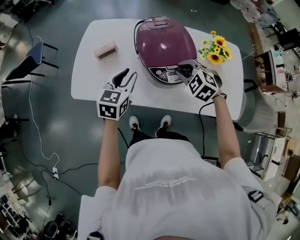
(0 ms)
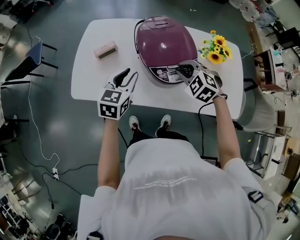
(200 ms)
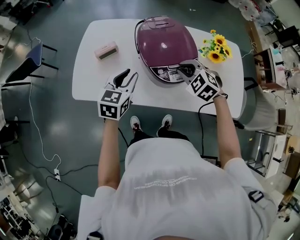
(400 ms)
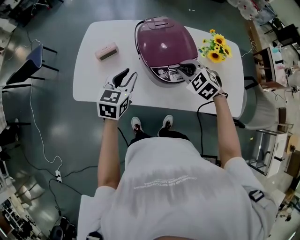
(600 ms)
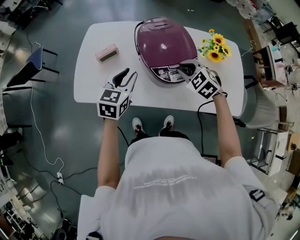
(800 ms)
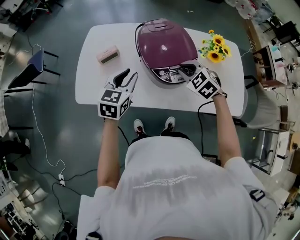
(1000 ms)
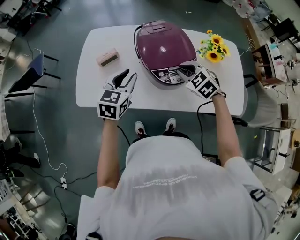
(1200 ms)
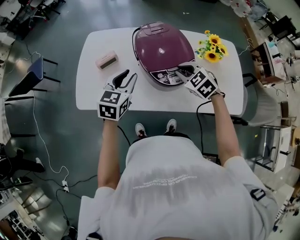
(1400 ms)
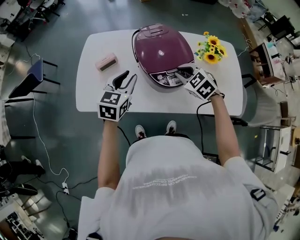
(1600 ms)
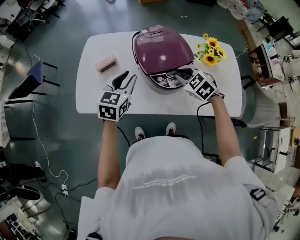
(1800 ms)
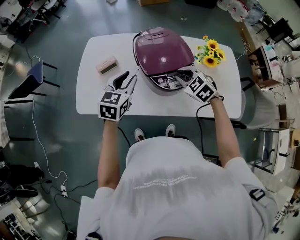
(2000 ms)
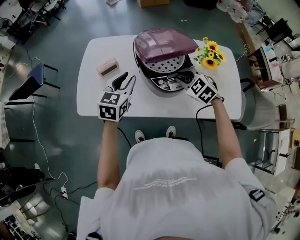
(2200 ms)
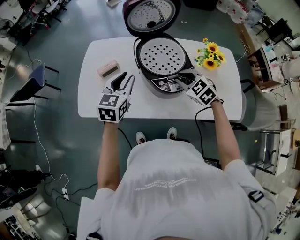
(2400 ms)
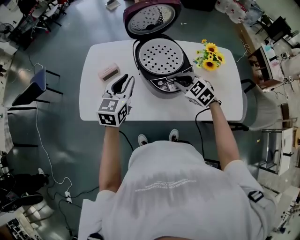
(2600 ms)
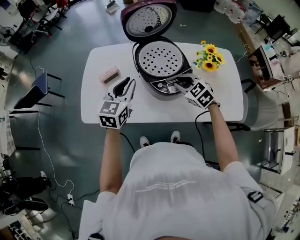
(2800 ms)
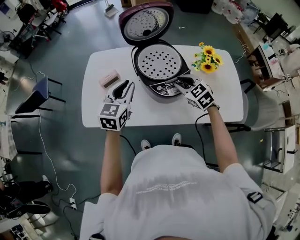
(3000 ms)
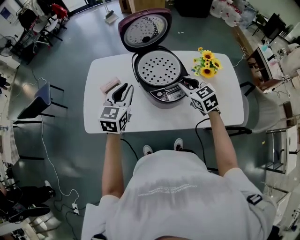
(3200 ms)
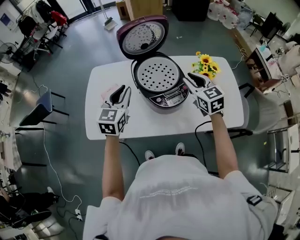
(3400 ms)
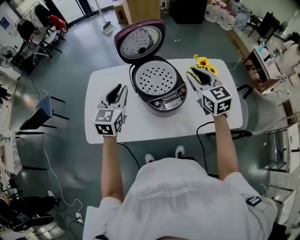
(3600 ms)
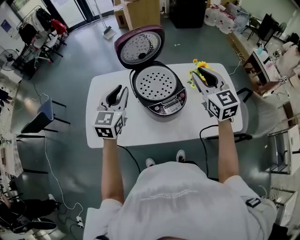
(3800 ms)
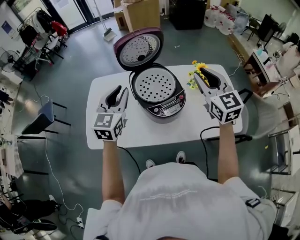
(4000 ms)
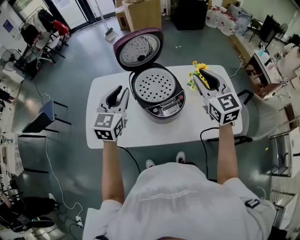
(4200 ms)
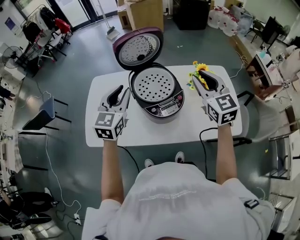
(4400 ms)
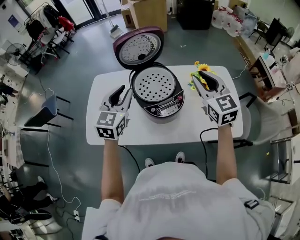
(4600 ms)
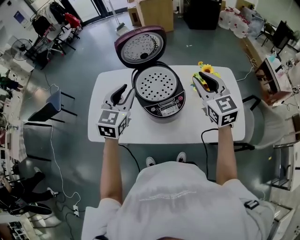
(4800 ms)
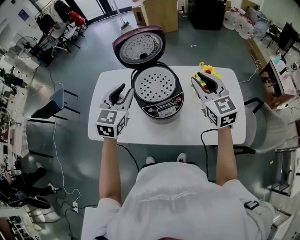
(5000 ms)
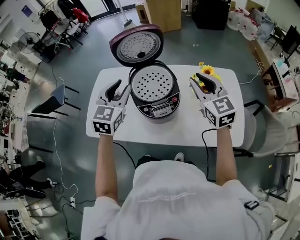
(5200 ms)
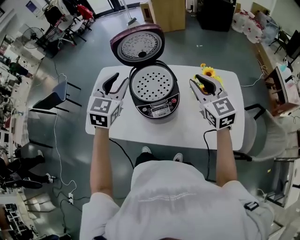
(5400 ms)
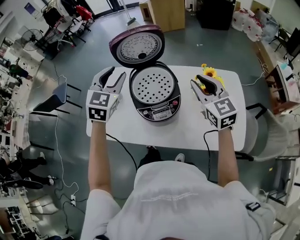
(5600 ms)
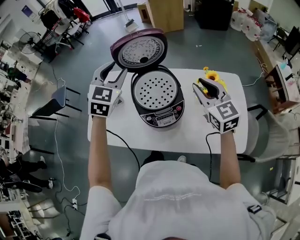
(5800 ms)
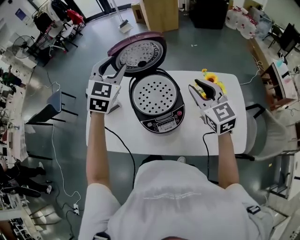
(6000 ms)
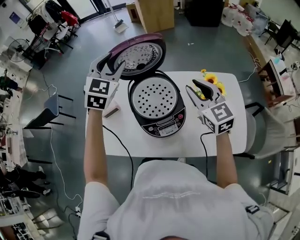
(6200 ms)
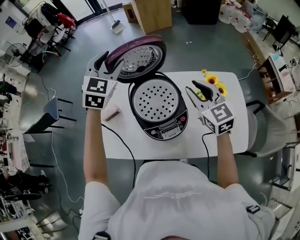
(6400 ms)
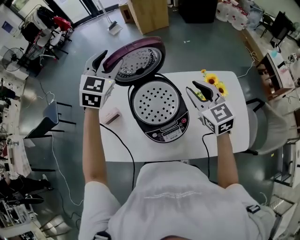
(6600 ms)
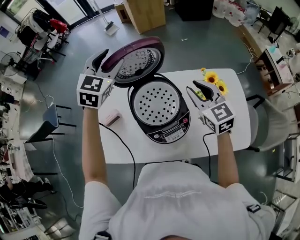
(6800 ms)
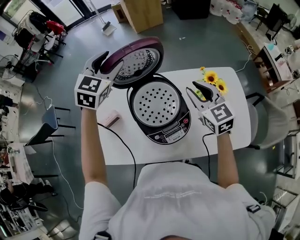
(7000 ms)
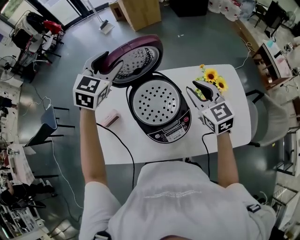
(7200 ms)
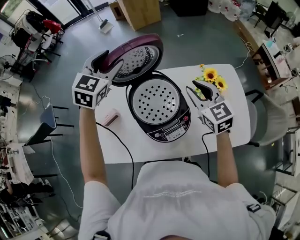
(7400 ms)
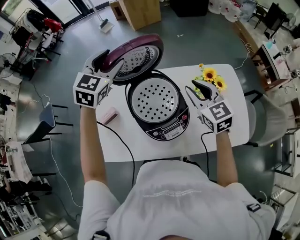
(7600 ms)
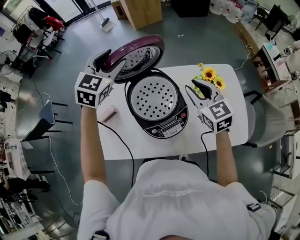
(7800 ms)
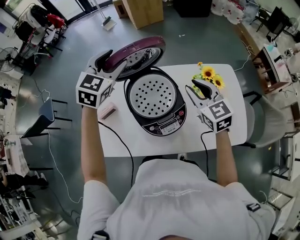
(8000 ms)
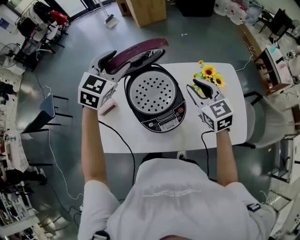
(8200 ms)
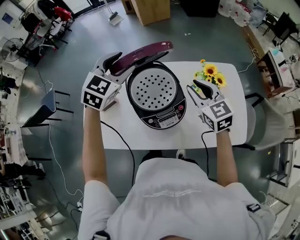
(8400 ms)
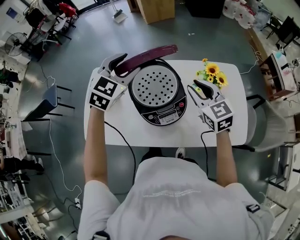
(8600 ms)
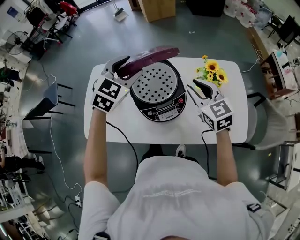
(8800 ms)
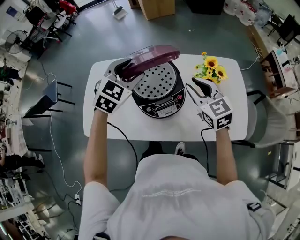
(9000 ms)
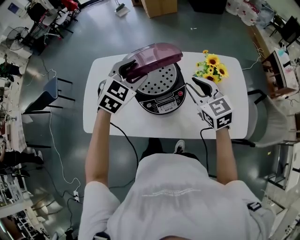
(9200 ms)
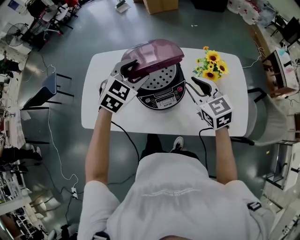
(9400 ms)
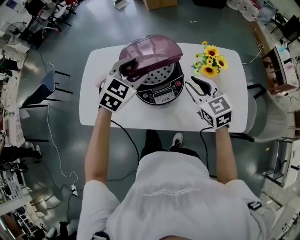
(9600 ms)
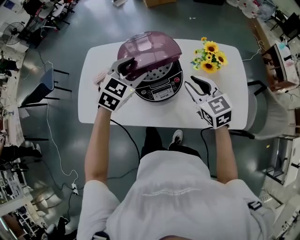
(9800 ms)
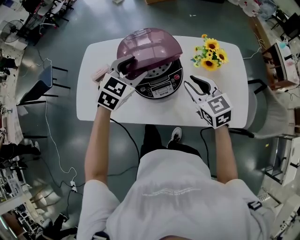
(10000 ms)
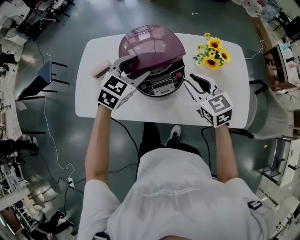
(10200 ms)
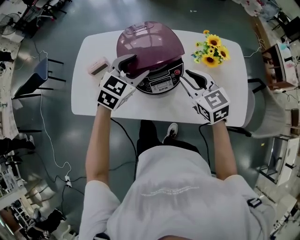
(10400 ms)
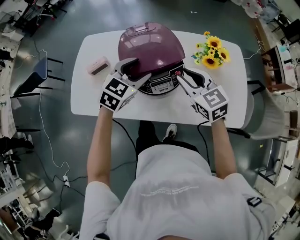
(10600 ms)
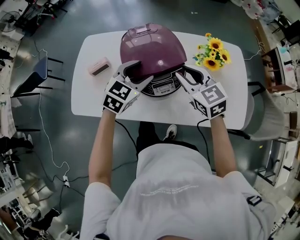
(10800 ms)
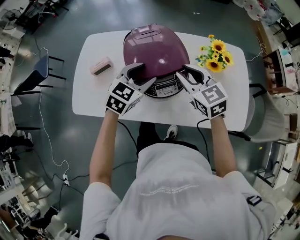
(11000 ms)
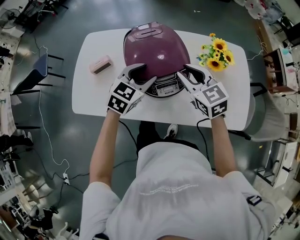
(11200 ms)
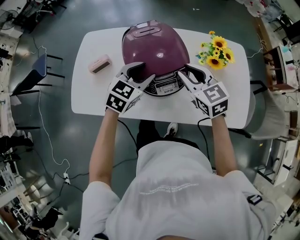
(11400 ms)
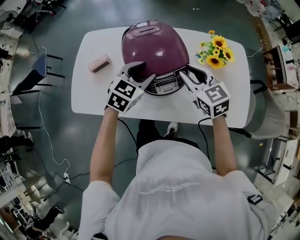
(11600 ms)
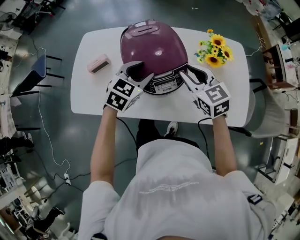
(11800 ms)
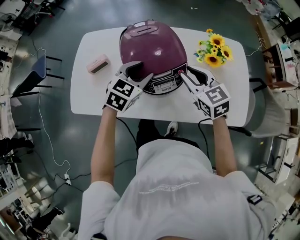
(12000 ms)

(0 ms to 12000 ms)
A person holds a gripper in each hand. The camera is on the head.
0 ms - 1600 ms: The grippers make only small movements.
1600 ms - 3000 ms: The grippers move only a little.
3000 ms - 4400 ms: The left gripper heads upward, covering approximately 10 cm; the right gripper travels upward and to the right by some 25 cm, and changes its angle by roughly 30 degrees.
4400 ms - 6000 ms: The right gripper travels forward by about 5 cm, while the left gripper shifts some 15 cm forward, swivels about 30 degrees, and opens.
6000 ms - 7600 ms: The left gripper is displaced forward by some 10 cm, while the right gripper ends up approximately 5 cm from where it was.
7600 ms - 9000 ms: The right gripper moves backward, roughly 5 cm. Meanwhile the left gripper heads backward, downward and to the right, covering roughly 15 cm.
9000 ms - 10400 ms: The left gripper goes about 10 cm downward and backward, while the right gripper heads downward, covering some 5 cm.
10400 ms - 12000 ms: The grippers move only a little.

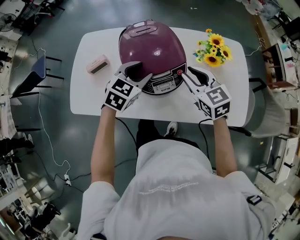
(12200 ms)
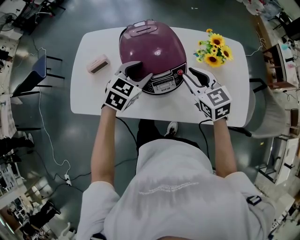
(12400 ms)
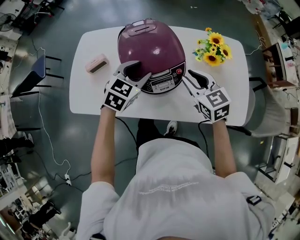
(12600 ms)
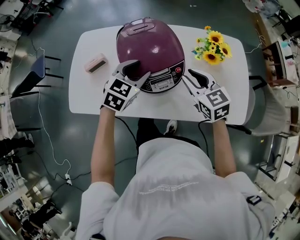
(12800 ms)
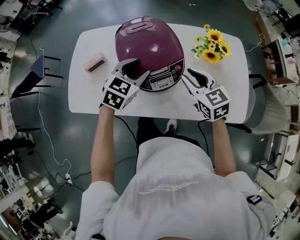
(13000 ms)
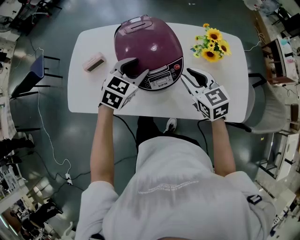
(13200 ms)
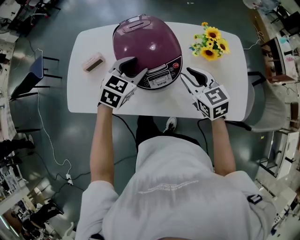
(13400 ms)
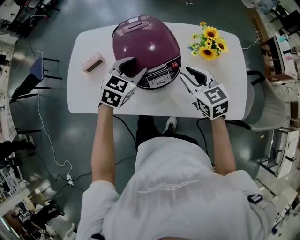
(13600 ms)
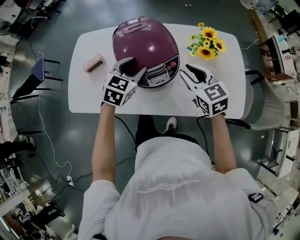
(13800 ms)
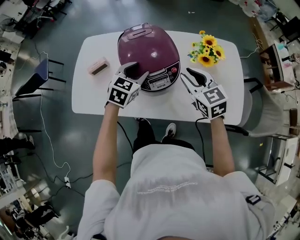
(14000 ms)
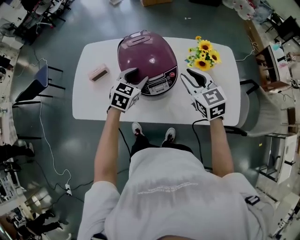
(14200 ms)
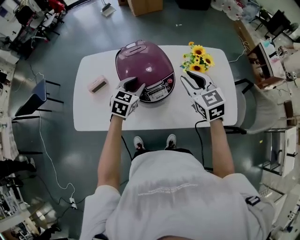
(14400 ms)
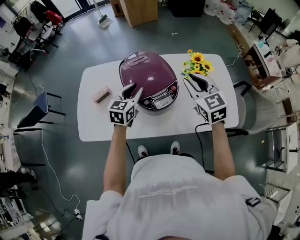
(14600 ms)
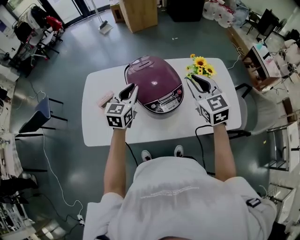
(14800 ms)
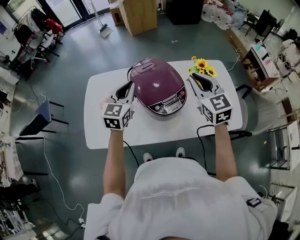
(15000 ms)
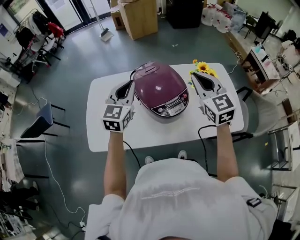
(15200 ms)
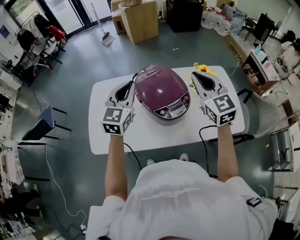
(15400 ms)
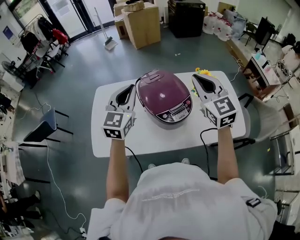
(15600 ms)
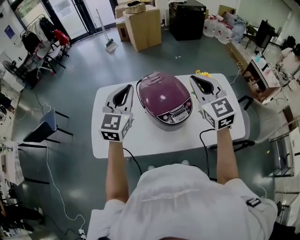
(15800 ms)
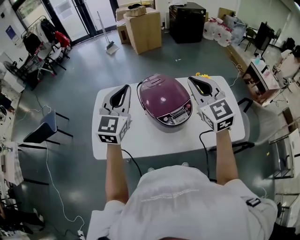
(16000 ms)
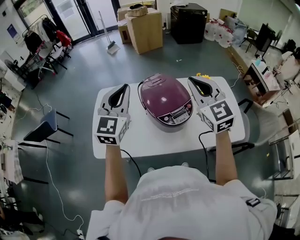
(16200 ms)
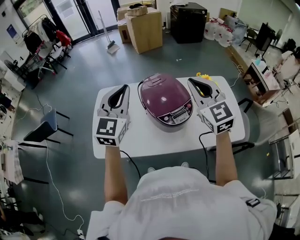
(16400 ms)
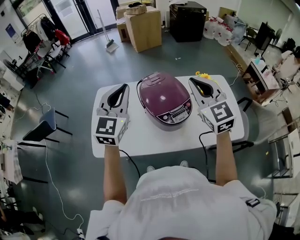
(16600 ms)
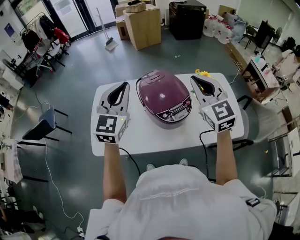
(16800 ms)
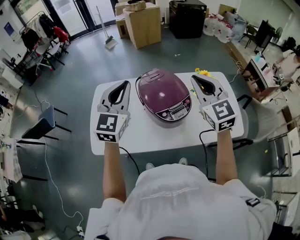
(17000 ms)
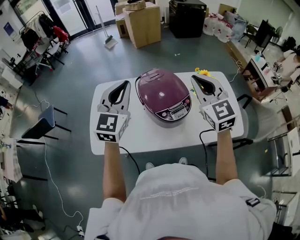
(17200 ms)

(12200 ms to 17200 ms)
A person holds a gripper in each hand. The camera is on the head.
12200 ms - 13800 ms: The grippers move only a little.
13800 ms - 15600 ms: The left gripper is displaced upward and to the left by roughly 25 cm, tips its fingers upward by roughly 30 degrees, and closes its fingers, while the right gripper shifts approximately 20 cm upward, turns by roughly 30 degrees, and closes up.
15600 ms - 17200 ms: The left gripper moves approximately 5 cm.

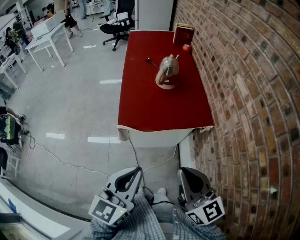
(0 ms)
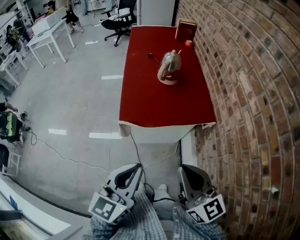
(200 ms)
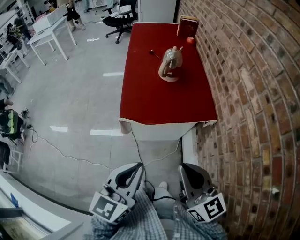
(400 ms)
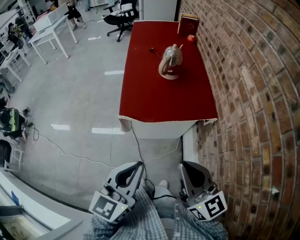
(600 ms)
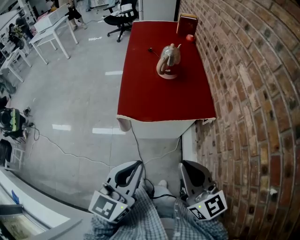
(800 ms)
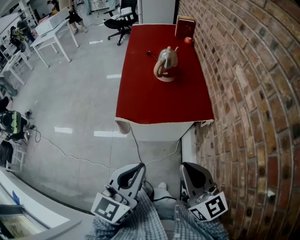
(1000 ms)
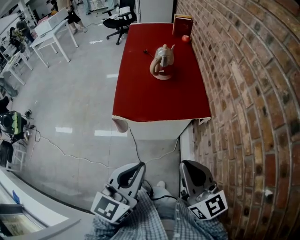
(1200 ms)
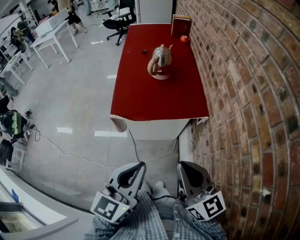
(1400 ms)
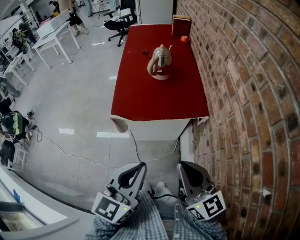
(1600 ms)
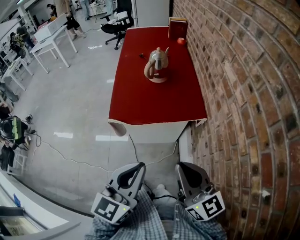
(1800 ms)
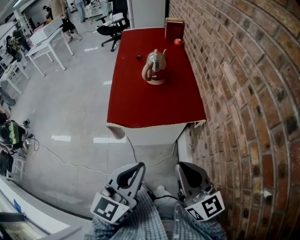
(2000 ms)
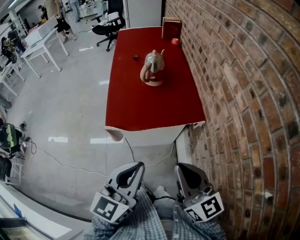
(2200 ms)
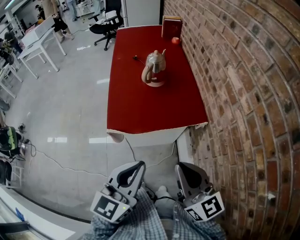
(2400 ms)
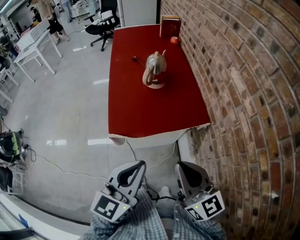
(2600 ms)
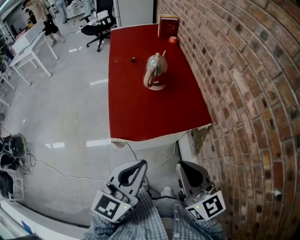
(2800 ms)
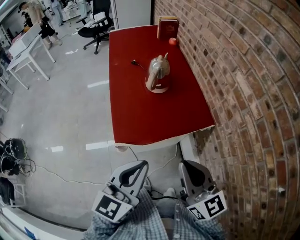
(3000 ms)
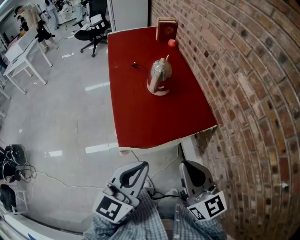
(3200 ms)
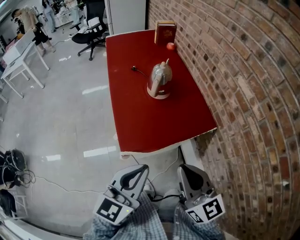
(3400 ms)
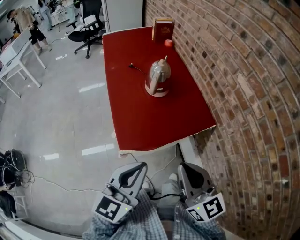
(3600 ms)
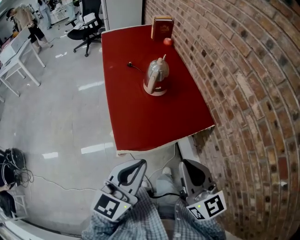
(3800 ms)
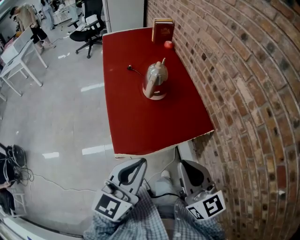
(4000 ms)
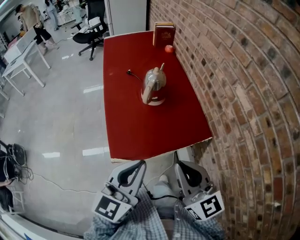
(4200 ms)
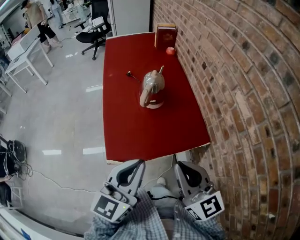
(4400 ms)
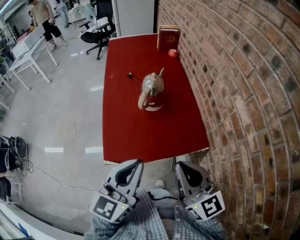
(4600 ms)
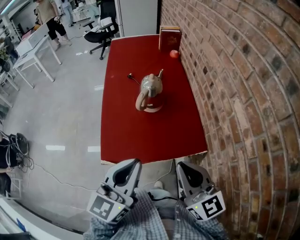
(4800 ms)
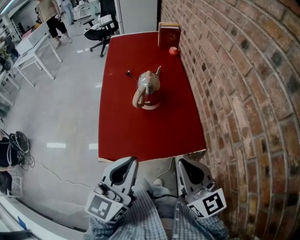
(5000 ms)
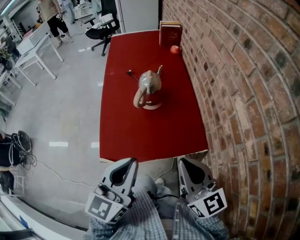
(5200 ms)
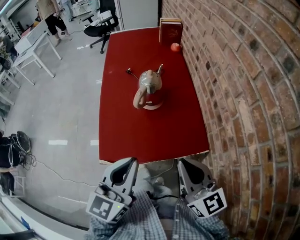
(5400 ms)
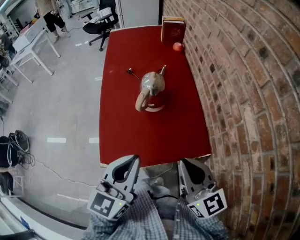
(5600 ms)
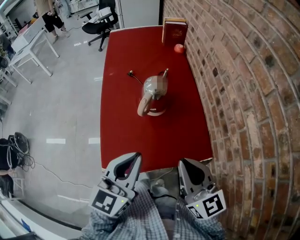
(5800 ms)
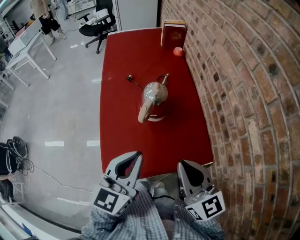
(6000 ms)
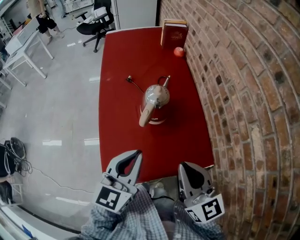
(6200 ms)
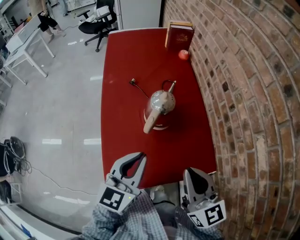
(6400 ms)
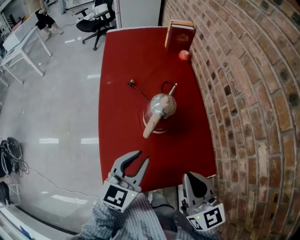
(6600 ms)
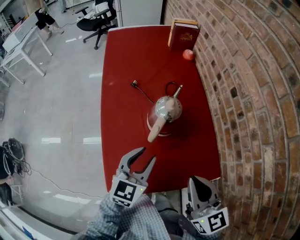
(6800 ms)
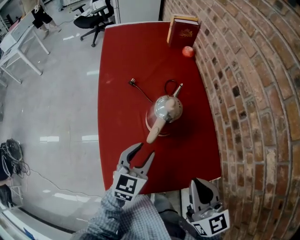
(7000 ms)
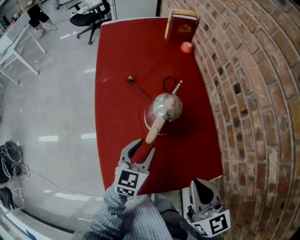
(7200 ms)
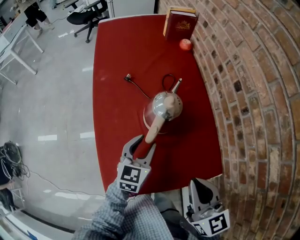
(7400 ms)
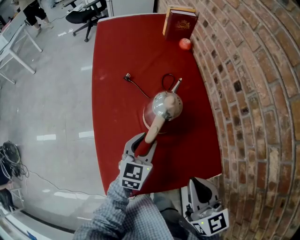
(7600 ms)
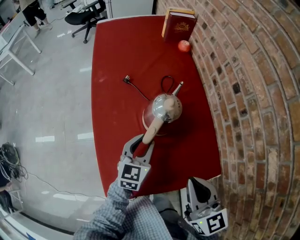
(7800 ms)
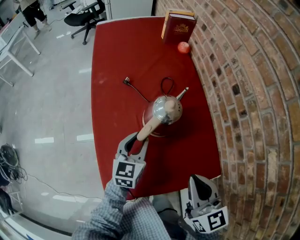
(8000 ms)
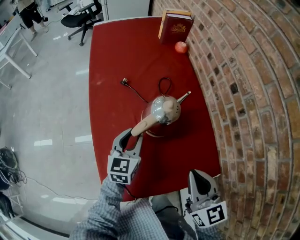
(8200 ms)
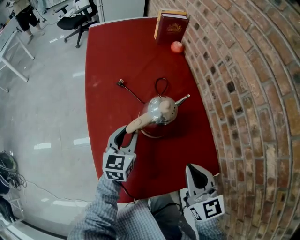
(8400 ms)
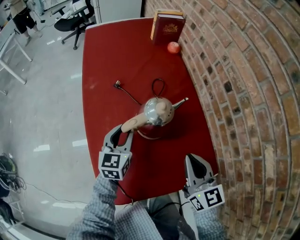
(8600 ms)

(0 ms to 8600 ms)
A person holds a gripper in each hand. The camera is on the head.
0 ms - 1400 ms: Both grippers move to the right, about 10 cm.
1400 ms - 2800 ms: The grippers both shift forward and to the left by roughly 15 cm.
2800 ms - 4400 ms: Both grippers travel together forward, some 10 cm.
4400 ms - 5800 ms: The grippers both shift forward by roughly 10 cm.
5800 ms - 7200 ms: The right gripper shifts about 10 cm forward and downward, while the left gripper travels forward and downward by some 25 cm, and opens its fingers.
7200 ms - 8600 ms: The left gripper travels forward and to the left by some 10 cm. The right gripper travels forward and downward by approximately 10 cm.
